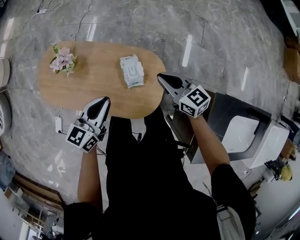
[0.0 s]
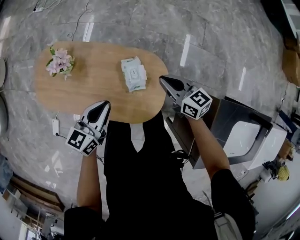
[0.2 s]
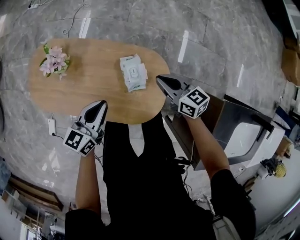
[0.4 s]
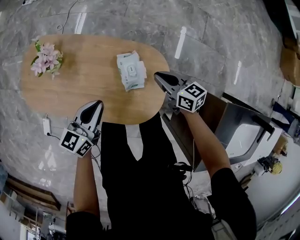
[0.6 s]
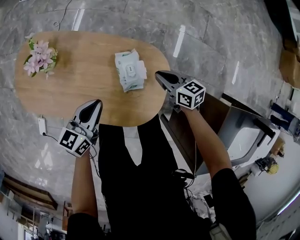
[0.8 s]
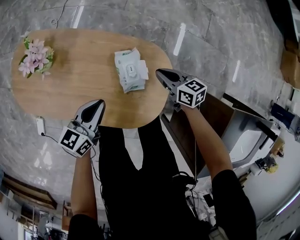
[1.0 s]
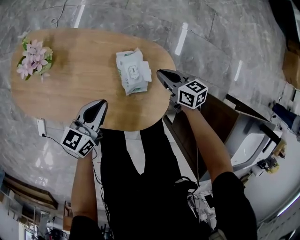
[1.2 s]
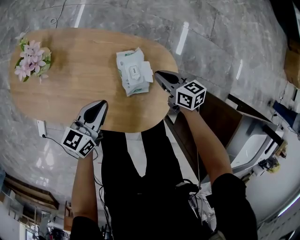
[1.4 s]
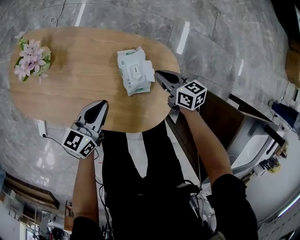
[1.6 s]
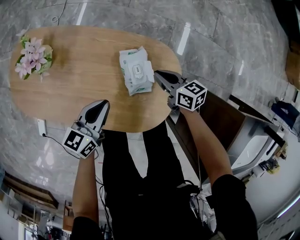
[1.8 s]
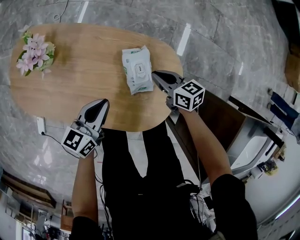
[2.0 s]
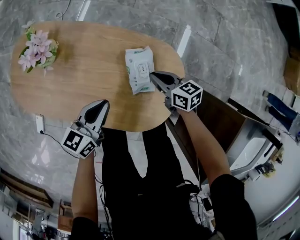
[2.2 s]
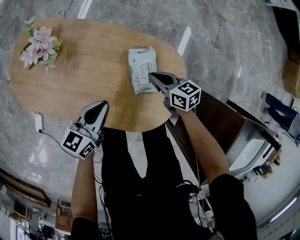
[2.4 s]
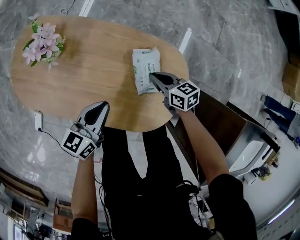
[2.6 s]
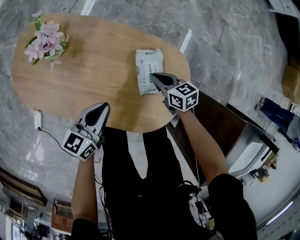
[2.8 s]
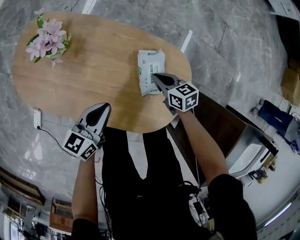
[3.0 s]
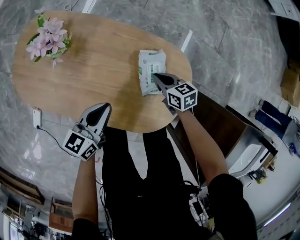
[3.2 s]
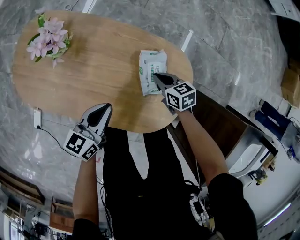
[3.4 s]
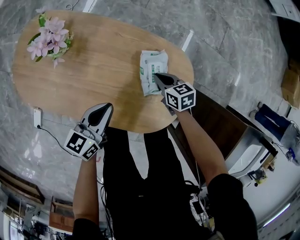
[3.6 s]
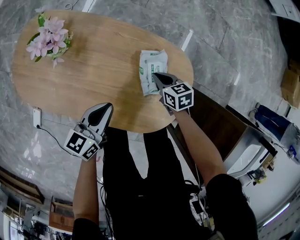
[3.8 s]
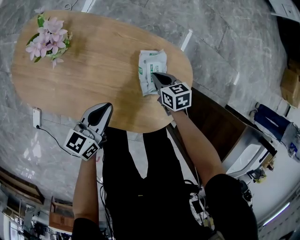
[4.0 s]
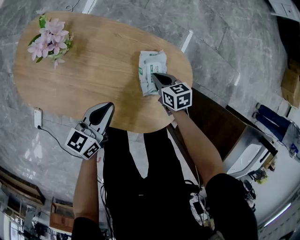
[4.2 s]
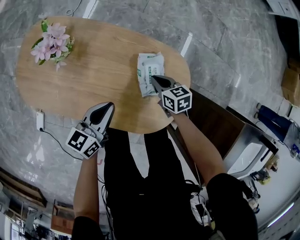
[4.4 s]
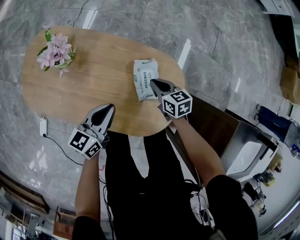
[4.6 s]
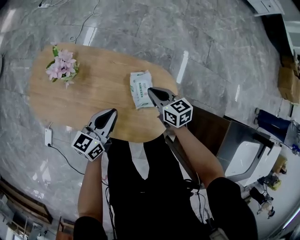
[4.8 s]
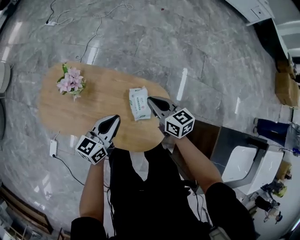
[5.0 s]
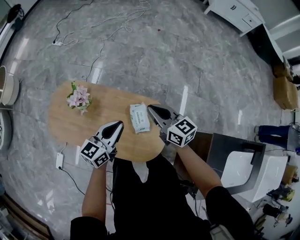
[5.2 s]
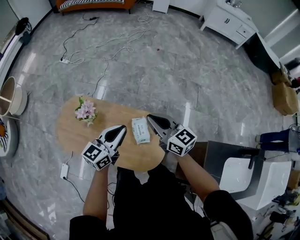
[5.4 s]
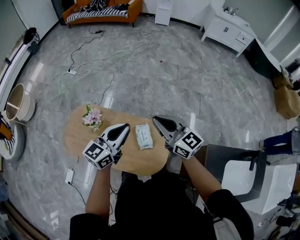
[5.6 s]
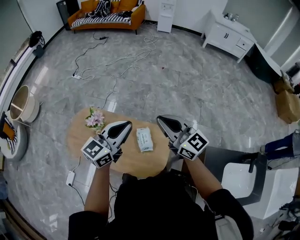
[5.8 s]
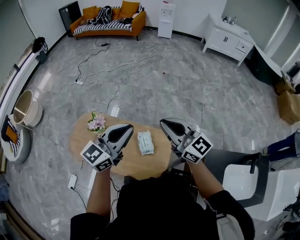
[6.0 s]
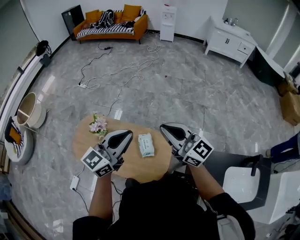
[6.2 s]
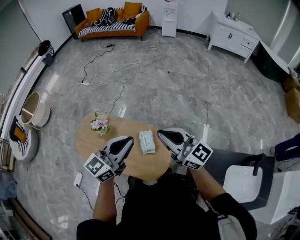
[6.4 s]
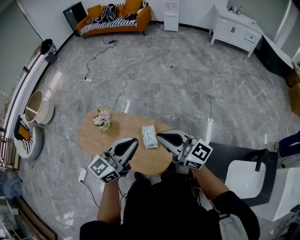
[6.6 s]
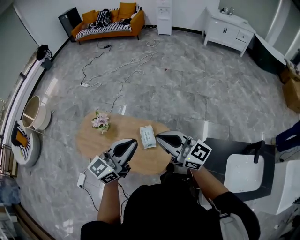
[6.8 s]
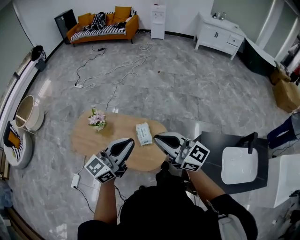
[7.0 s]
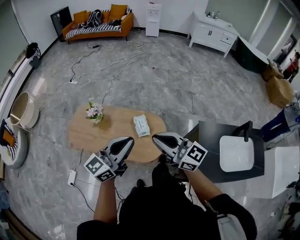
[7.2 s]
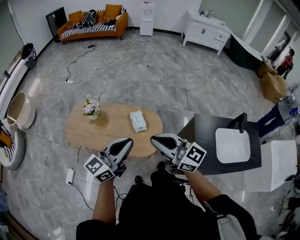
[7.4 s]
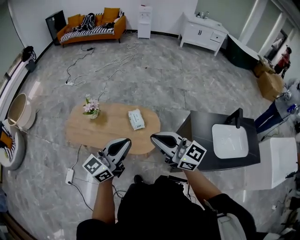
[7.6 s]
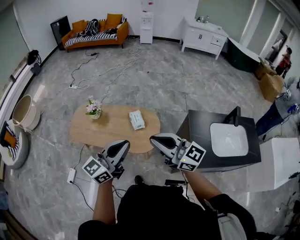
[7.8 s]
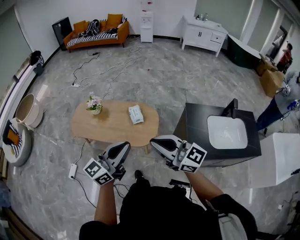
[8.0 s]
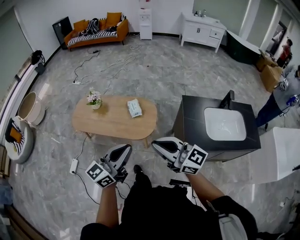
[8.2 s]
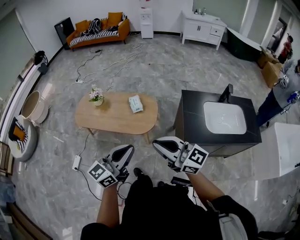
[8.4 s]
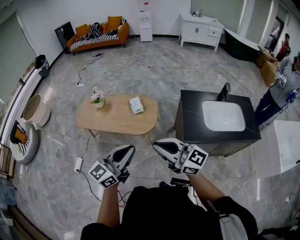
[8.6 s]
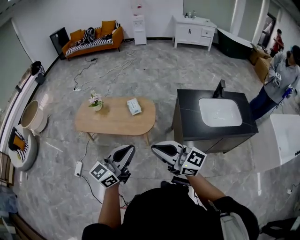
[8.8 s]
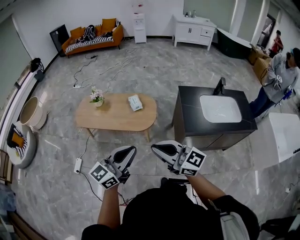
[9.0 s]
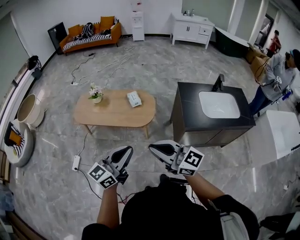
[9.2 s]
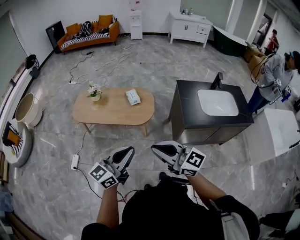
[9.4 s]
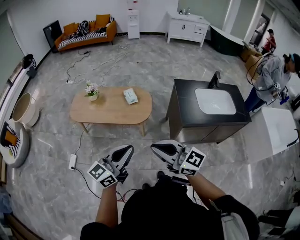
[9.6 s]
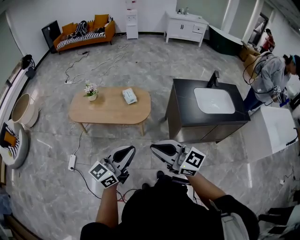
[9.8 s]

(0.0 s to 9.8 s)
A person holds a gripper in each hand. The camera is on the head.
0.0 s - 1.4 s: The two grippers go roughly 25 cm downward. The right gripper swivels about 20 degrees.
1.4 s - 2.8 s: Both grippers move to the left, roughly 10 cm.
2.8 s - 4.2 s: The grippers move only a little.
4.2 s - 5.6 s: The grippers both shift upward by about 50 cm. The right gripper angles its fingers upward, by approximately 50 degrees. The left gripper swivels about 30 degrees.
5.6 s - 7.0 s: Both grippers travel together backward, about 20 cm.
7.0 s - 8.4 s: The two grippers travel together, backward, approximately 40 cm.
8.4 s - 9.8 s: The two grippers go some 15 cm backward and to the left.

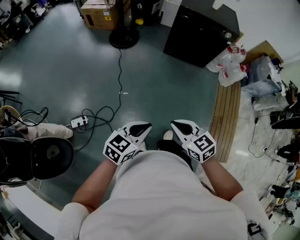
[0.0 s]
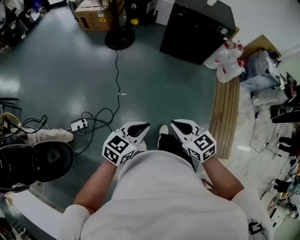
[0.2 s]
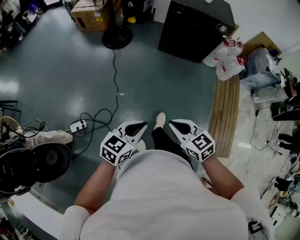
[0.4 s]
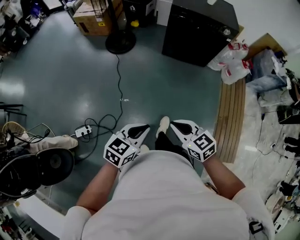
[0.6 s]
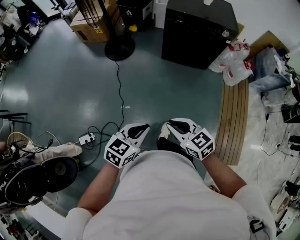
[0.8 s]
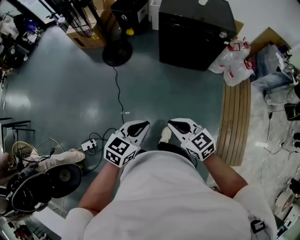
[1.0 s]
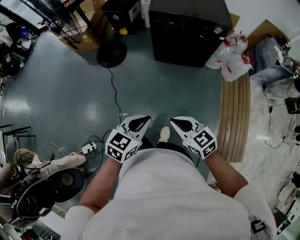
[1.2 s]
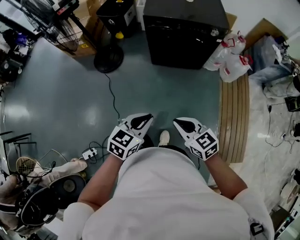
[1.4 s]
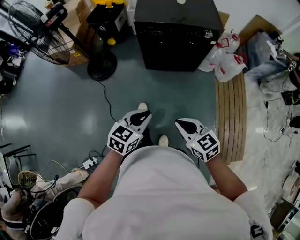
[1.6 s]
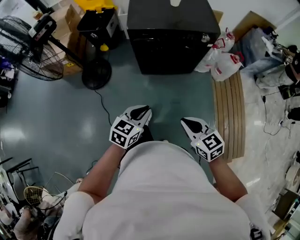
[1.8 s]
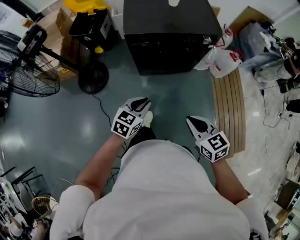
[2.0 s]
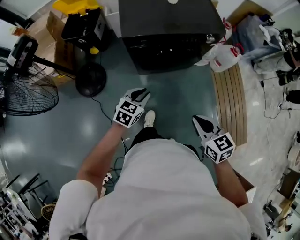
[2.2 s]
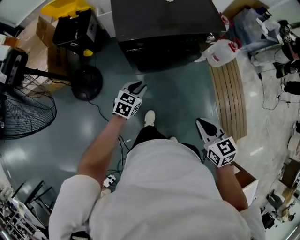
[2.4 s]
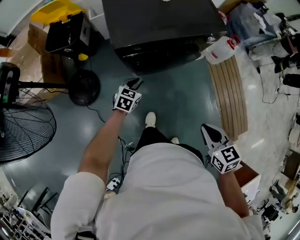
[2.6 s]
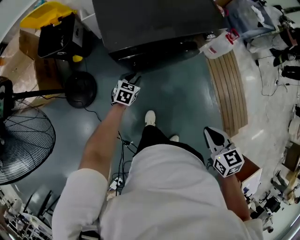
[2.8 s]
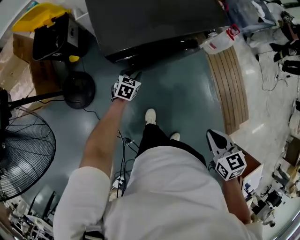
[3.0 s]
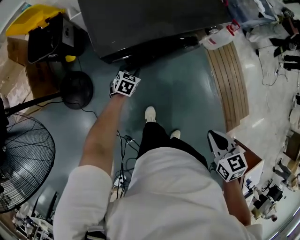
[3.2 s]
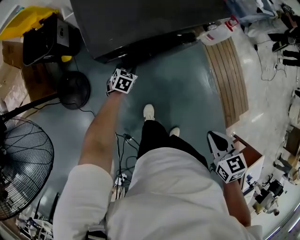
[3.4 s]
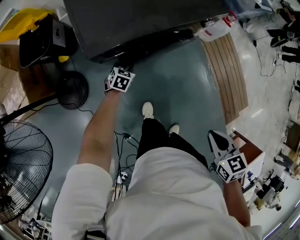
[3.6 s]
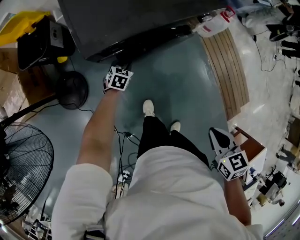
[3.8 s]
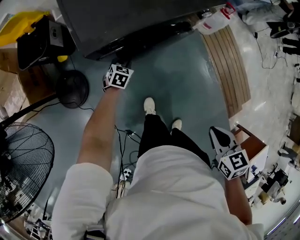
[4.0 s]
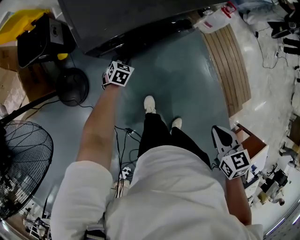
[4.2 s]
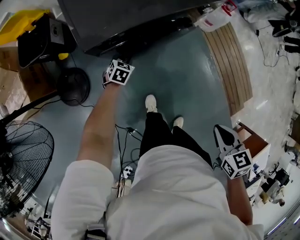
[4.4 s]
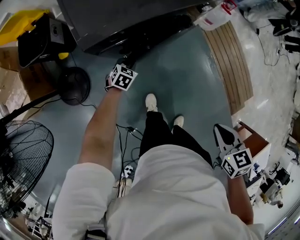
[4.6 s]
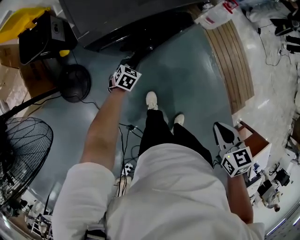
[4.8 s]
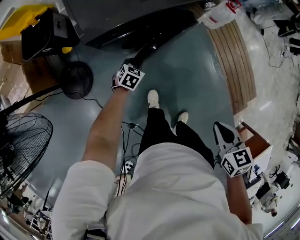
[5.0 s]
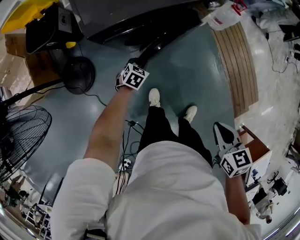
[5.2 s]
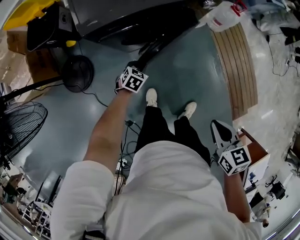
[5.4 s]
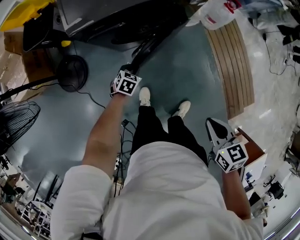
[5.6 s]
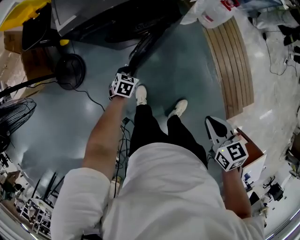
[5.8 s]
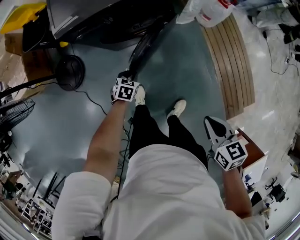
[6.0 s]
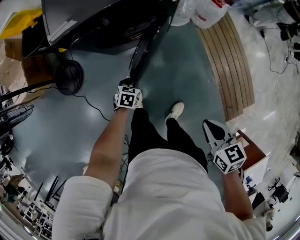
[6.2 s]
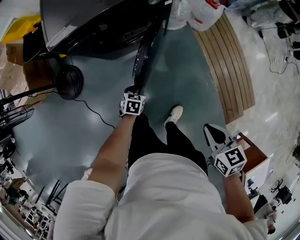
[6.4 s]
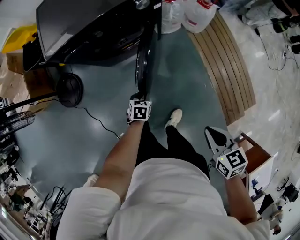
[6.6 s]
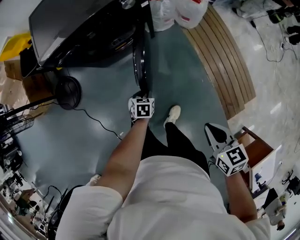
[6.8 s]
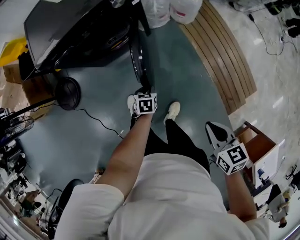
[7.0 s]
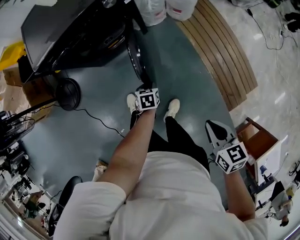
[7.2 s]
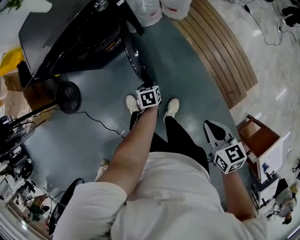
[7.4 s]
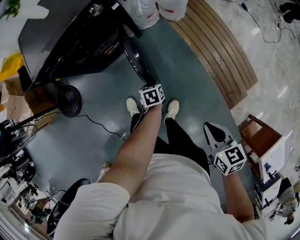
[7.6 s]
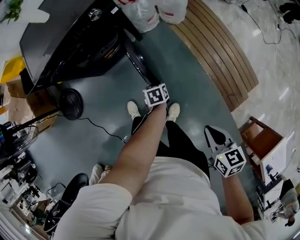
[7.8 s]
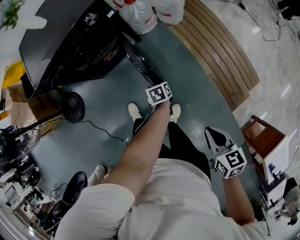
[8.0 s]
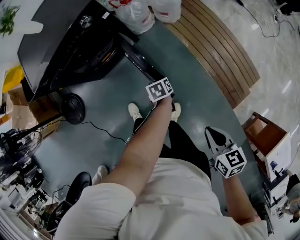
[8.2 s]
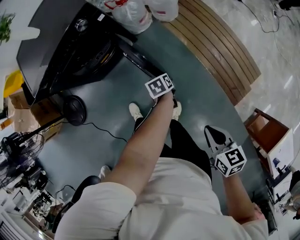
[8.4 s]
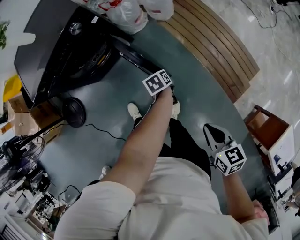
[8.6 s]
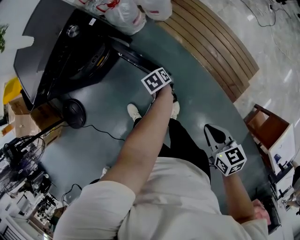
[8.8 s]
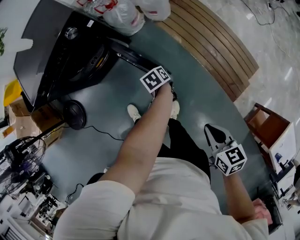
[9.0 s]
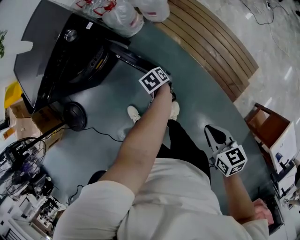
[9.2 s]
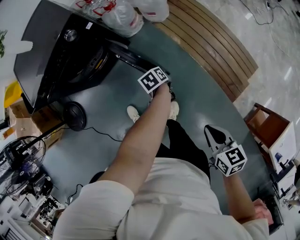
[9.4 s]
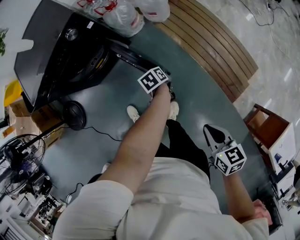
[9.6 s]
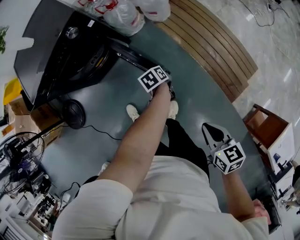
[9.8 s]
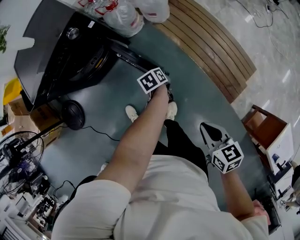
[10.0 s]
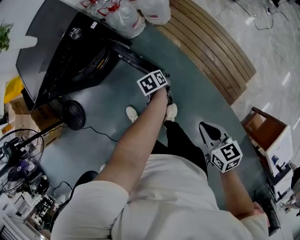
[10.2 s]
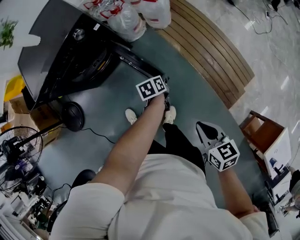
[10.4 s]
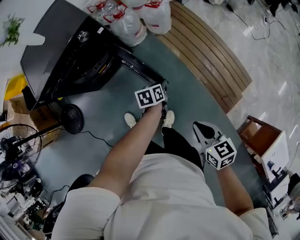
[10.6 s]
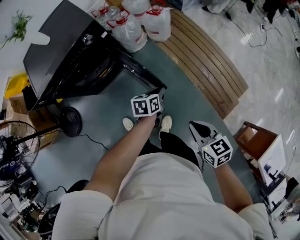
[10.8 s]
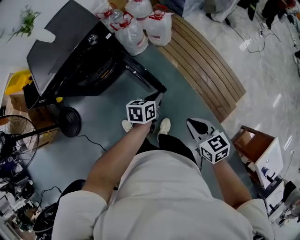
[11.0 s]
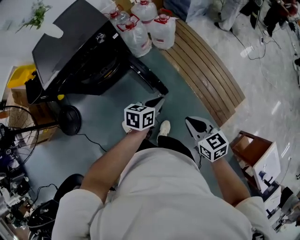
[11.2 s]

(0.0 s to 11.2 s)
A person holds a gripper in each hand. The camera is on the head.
0.0 s - 1.6 s: The left gripper shifts about 40 cm forward, while the right gripper goes about 35 cm forward and to the right.
1.6 s - 3.2 s: The left gripper ends up some 60 cm from where it was, and changes its angle by approximately 30 degrees. The right gripper moves some 20 cm, and turns by approximately 50 degrees.
3.2 s - 4.8 s: The right gripper ends up some 5 cm from where it was. The left gripper shifts by some 5 cm.
4.8 s - 6.4 s: The left gripper heads to the right and backward, covering approximately 25 cm, and swivels approximately 20 degrees, while the right gripper heads to the right, covering roughly 20 cm.
6.4 s - 8.0 s: The right gripper is displaced to the right and backward by some 15 cm; the left gripper moves to the right, approximately 25 cm, and swivels some 20 degrees.
8.0 s - 9.6 s: The left gripper travels to the right by approximately 10 cm.
9.6 s - 11.2 s: The left gripper goes some 25 cm upward and backward, and turns by about 40 degrees. The right gripper shifts about 10 cm upward, to the left and forward.

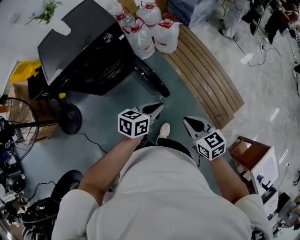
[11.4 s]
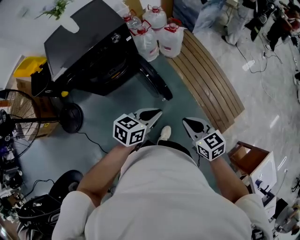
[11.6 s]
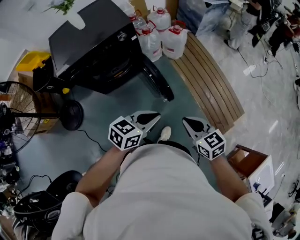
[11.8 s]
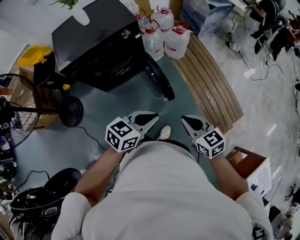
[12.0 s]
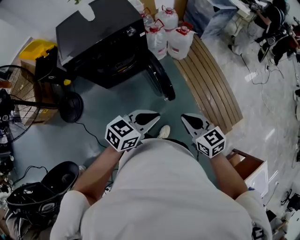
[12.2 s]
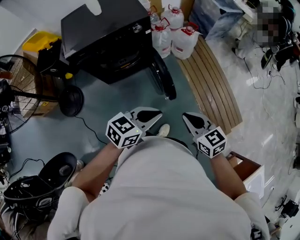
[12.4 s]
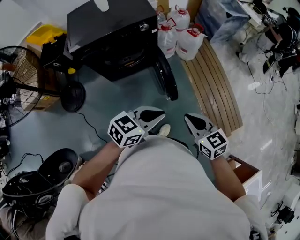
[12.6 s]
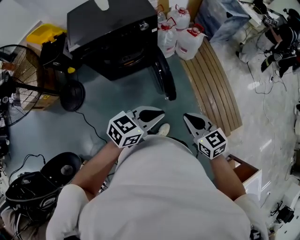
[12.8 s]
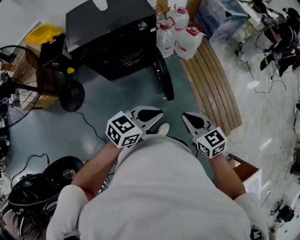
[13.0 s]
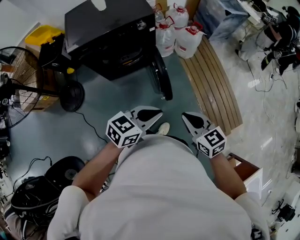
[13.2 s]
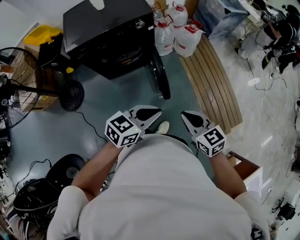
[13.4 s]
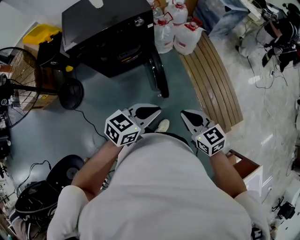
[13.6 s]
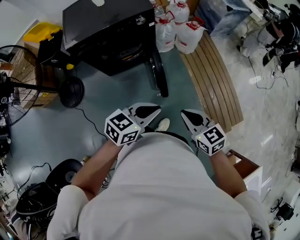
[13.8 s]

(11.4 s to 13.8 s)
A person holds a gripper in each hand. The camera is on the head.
11.4 s - 12.6 s: The right gripper travels to the left by about 5 cm; the left gripper heads upward, backward and to the left, covering roughly 15 cm.
12.6 s - 13.8 s: The grippers stay close to where they were, moving slightly.
